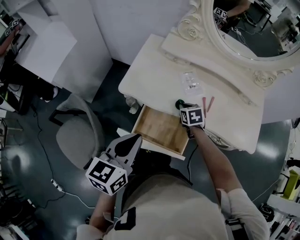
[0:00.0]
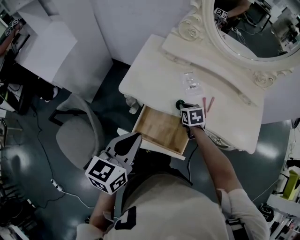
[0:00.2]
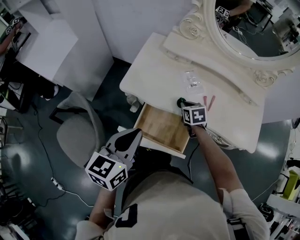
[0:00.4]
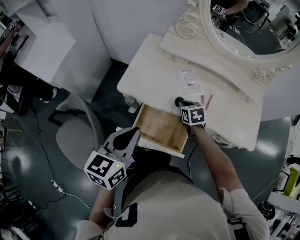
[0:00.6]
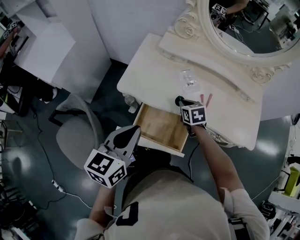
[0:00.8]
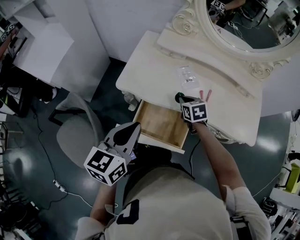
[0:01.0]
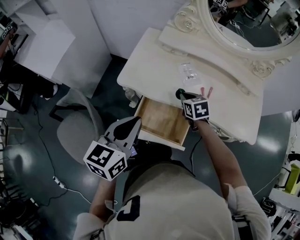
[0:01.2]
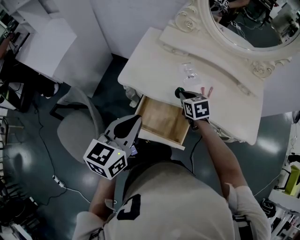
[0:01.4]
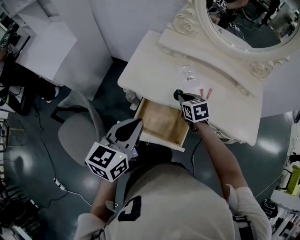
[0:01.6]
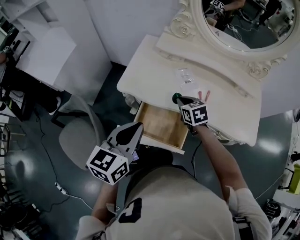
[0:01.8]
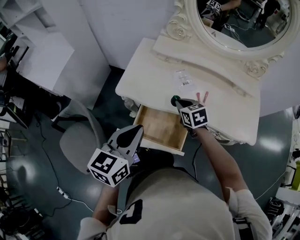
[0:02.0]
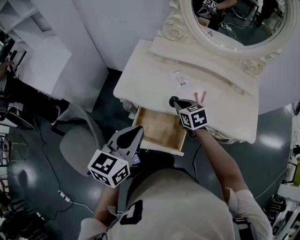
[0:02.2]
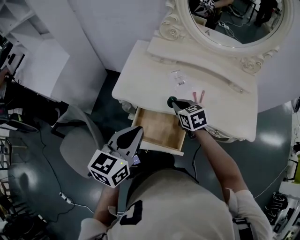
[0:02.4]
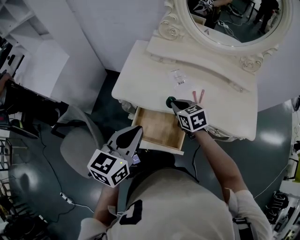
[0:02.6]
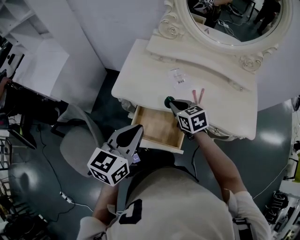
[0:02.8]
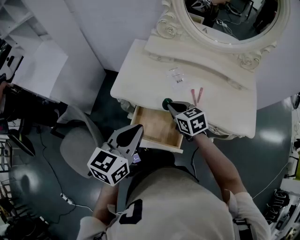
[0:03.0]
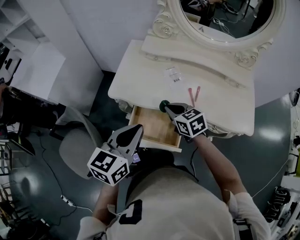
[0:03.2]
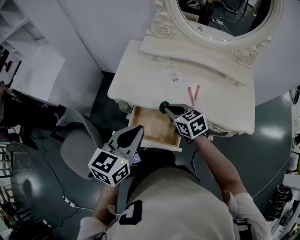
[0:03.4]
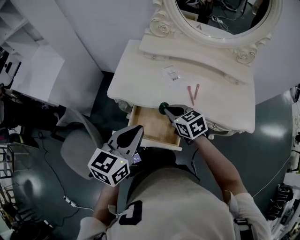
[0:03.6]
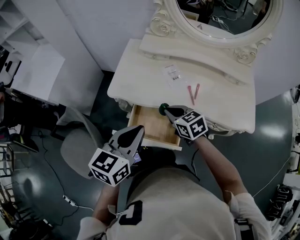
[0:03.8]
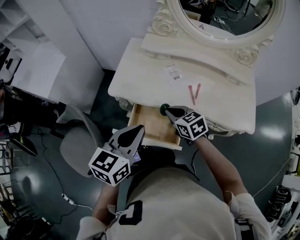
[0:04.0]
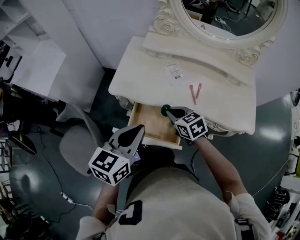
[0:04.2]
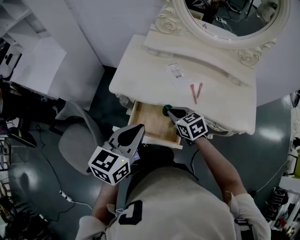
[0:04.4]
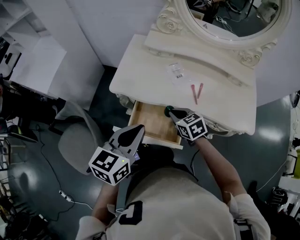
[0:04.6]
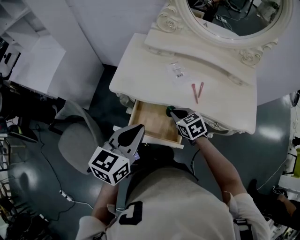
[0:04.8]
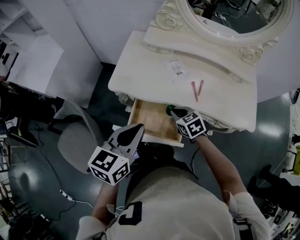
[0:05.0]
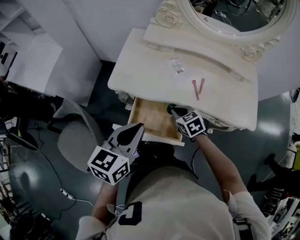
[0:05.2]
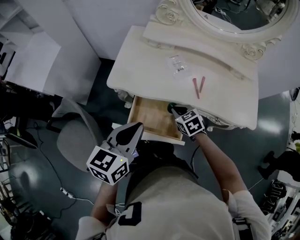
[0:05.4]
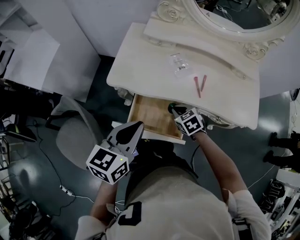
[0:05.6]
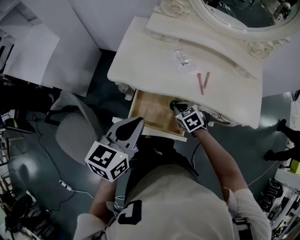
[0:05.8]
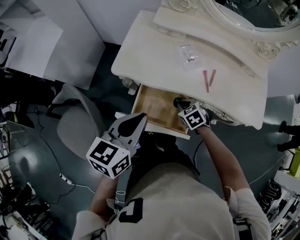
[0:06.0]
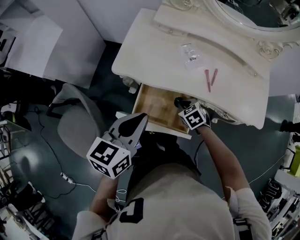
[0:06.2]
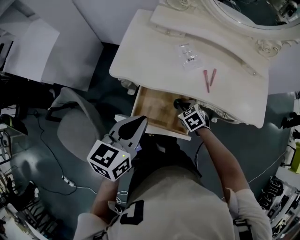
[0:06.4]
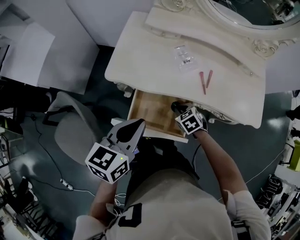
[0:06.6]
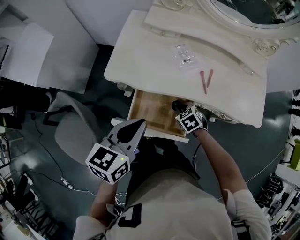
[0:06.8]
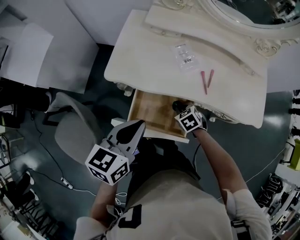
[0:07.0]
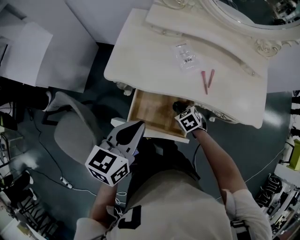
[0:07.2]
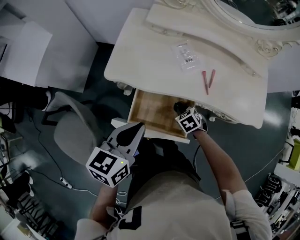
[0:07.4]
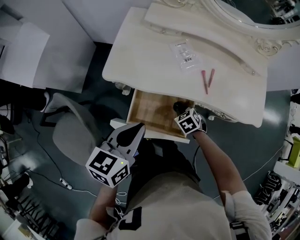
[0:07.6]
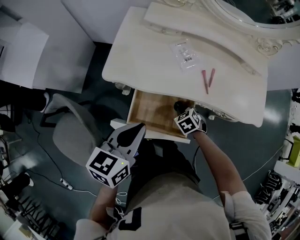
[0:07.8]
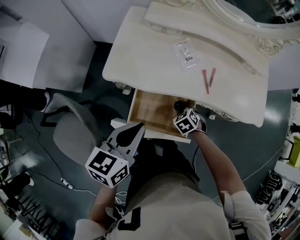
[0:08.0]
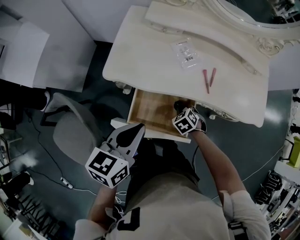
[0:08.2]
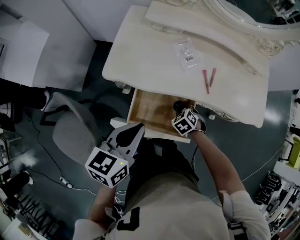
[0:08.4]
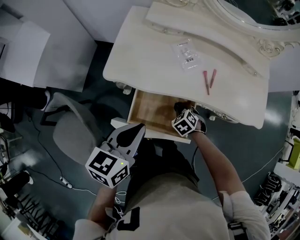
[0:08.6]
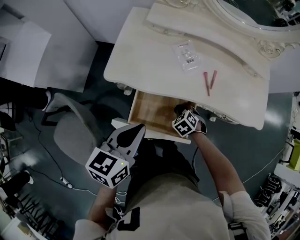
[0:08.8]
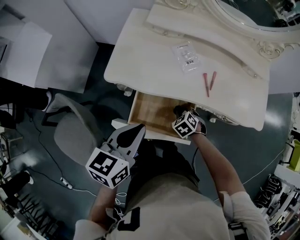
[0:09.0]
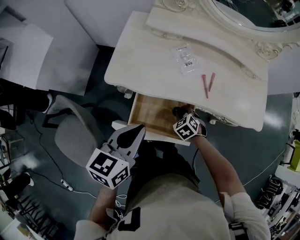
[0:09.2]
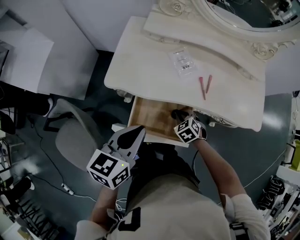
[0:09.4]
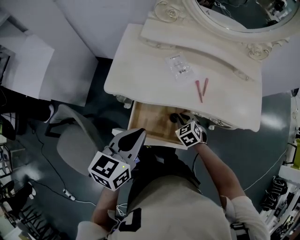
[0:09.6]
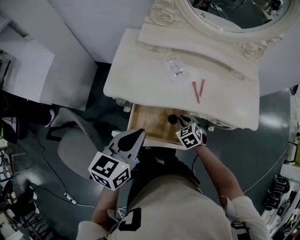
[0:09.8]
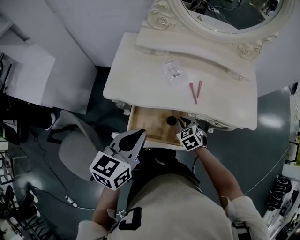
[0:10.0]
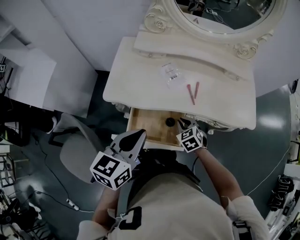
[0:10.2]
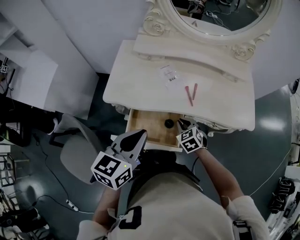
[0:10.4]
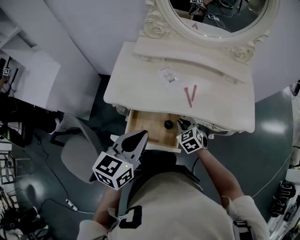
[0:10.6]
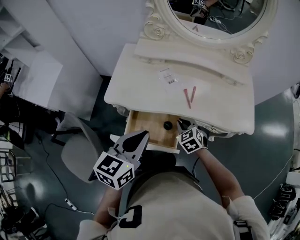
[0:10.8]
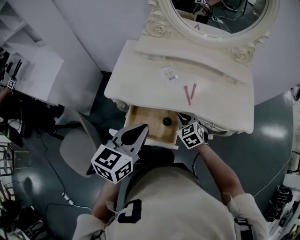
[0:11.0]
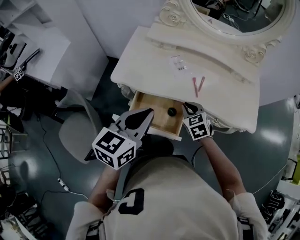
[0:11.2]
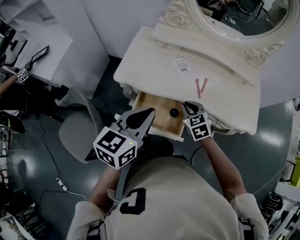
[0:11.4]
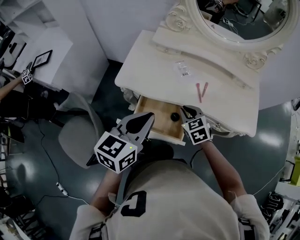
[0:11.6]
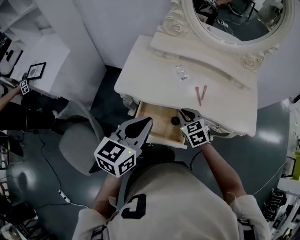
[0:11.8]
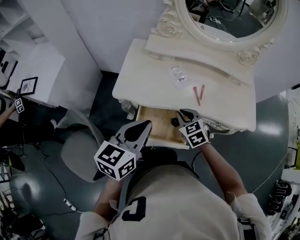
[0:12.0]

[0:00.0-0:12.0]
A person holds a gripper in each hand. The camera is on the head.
0:00.0 to 0:01.6: The right gripper heads upward, covering some 5 cm.
0:01.6 to 0:03.0: The right gripper changes place by some 5 cm.
0:03.0 to 0:04.4: The right gripper moves some 5 cm.
0:04.4 to 0:06.0: The right gripper travels downward by roughly 10 cm, and changes its angle by roughly 20 degrees.
0:06.0 to 0:07.6: The right gripper goes roughly 5 cm downward.
0:07.6 to 0:09.0: There are only small adjustments of the grippers.
0:09.0 to 0:10.4: The left gripper moves upward and to the right, about 10 cm; the right gripper goes approximately 10 cm upward, and turns by about 20 degrees.
0:10.4 to 0:12.0: The right gripper moves upward and to the left, roughly 10 cm.

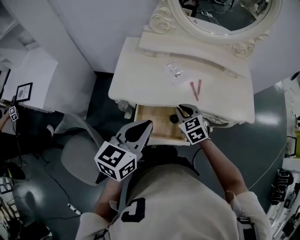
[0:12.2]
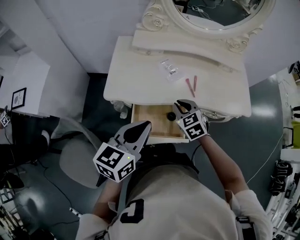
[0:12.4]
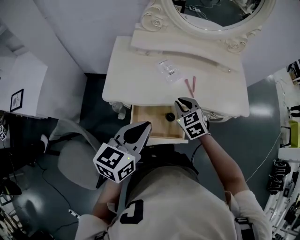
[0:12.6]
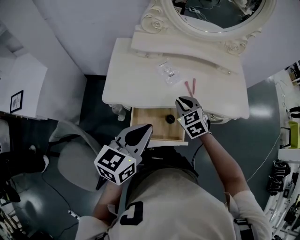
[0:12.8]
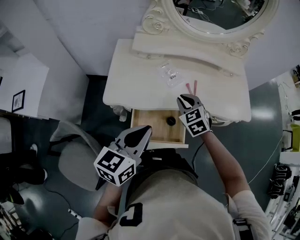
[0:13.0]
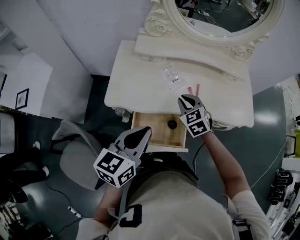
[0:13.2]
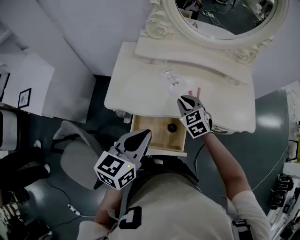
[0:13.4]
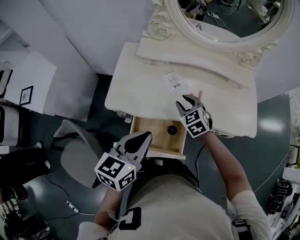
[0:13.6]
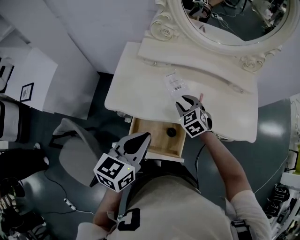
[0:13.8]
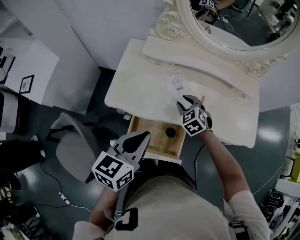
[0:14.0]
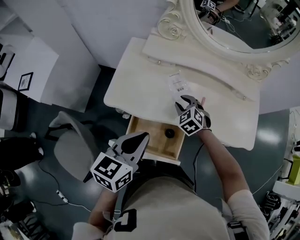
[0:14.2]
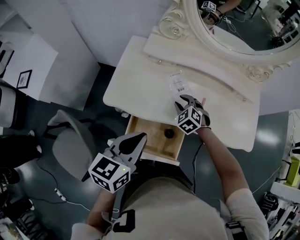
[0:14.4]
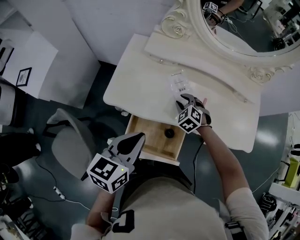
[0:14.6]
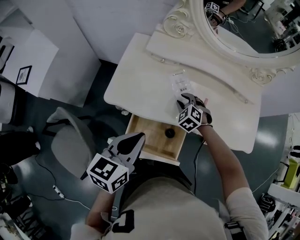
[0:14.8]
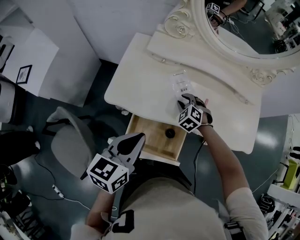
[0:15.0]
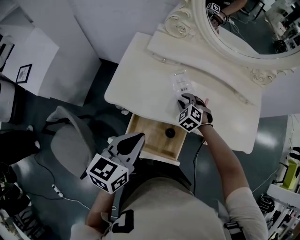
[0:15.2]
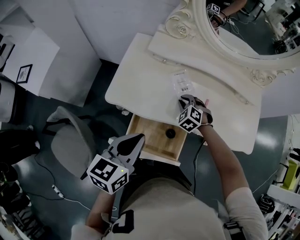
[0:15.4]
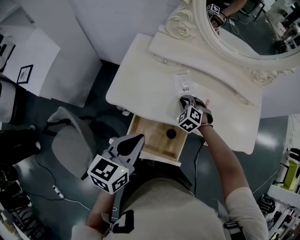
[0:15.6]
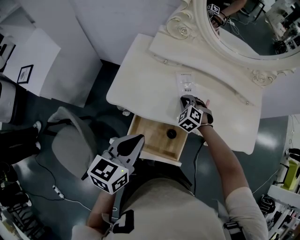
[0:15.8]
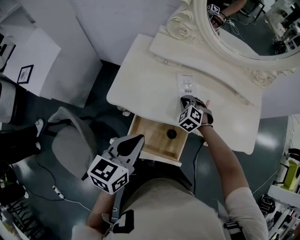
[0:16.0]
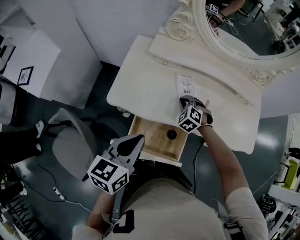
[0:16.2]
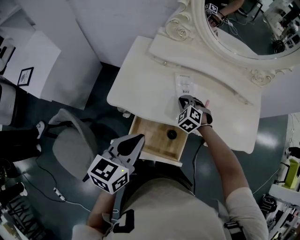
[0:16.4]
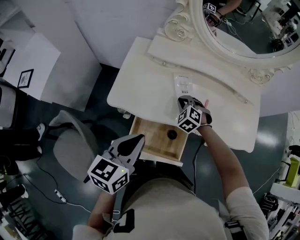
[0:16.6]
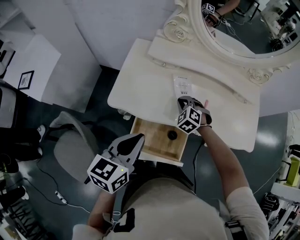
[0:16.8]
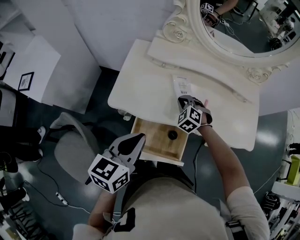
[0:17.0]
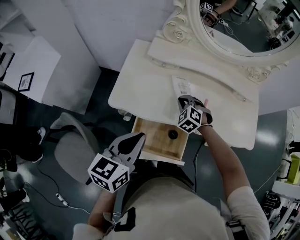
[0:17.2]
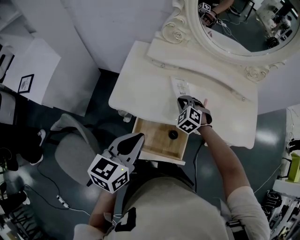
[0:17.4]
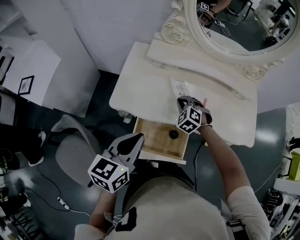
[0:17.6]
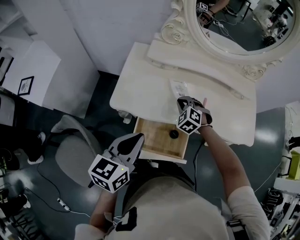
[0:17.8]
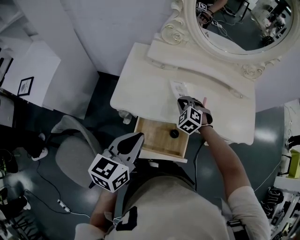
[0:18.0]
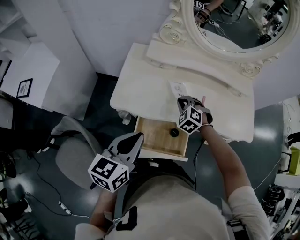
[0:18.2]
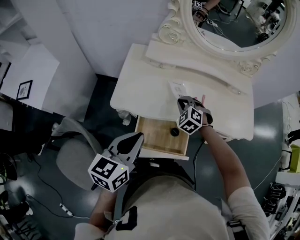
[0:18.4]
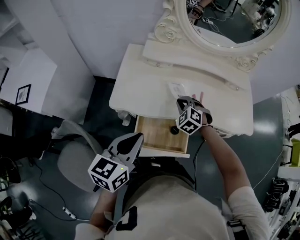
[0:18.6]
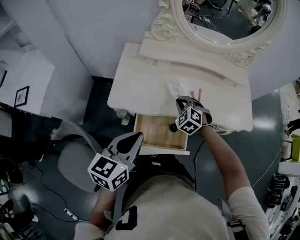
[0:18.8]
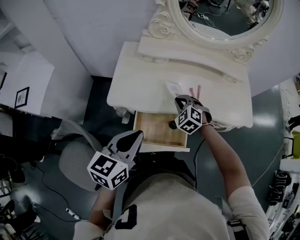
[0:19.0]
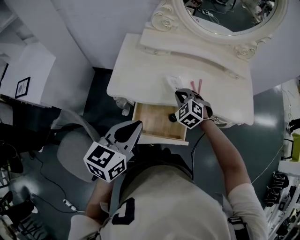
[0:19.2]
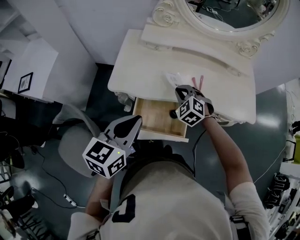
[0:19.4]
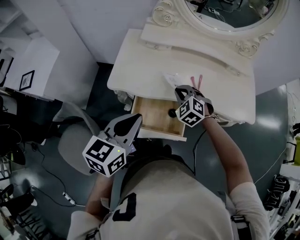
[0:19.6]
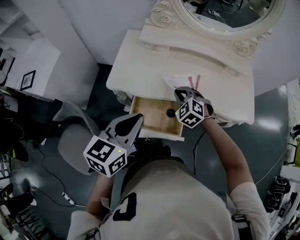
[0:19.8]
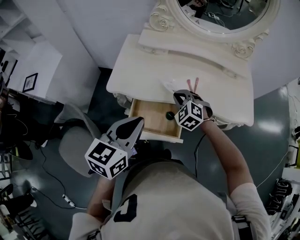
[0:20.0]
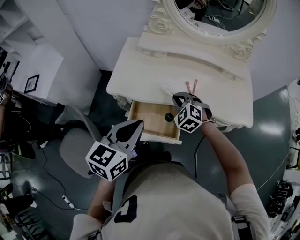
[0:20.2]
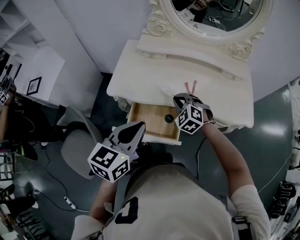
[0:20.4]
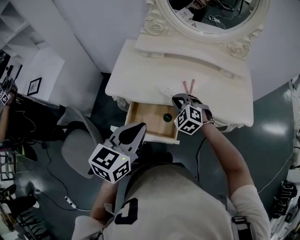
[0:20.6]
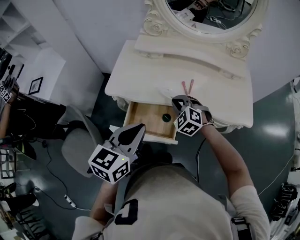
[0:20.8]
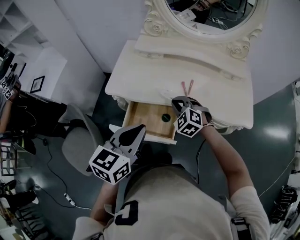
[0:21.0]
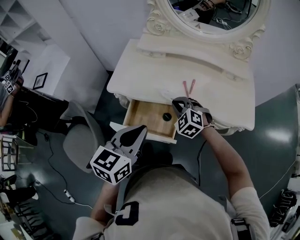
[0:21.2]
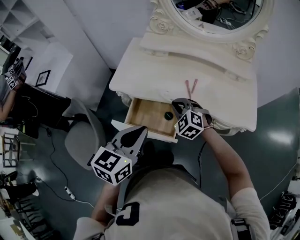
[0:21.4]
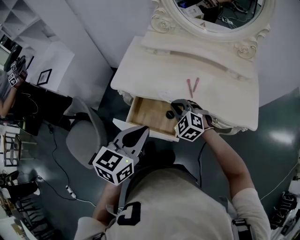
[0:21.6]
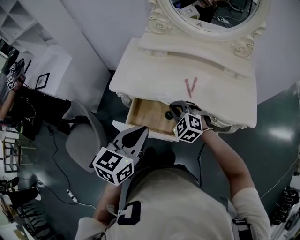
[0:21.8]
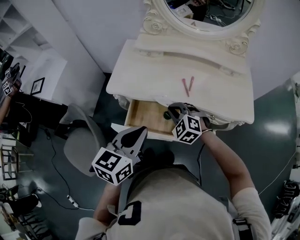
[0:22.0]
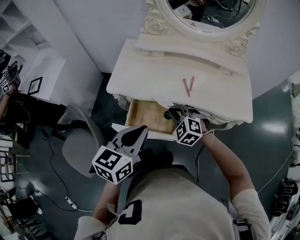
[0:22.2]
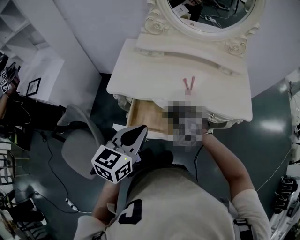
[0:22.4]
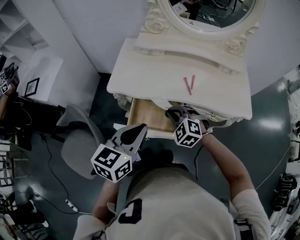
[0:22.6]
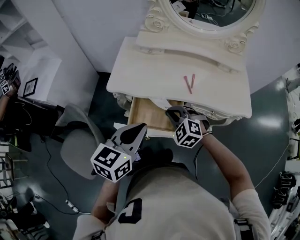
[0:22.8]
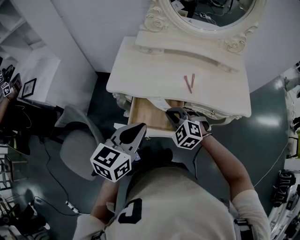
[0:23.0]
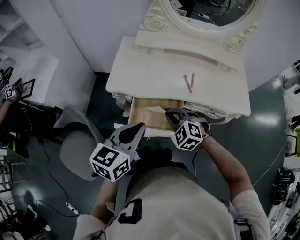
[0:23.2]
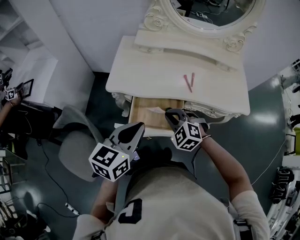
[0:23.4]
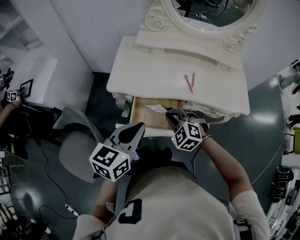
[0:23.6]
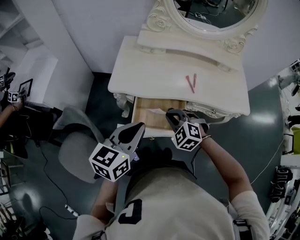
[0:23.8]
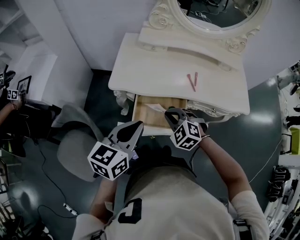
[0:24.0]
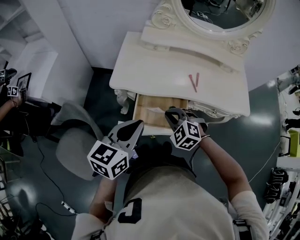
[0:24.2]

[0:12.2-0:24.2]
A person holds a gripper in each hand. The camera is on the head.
0:12.2 to 0:13.8: The left gripper shifts about 5 cm forward, while the right gripper goes about 10 cm forward, and opens.
0:13.8 to 0:15.2: The right gripper shifts approximately 10 cm downward, and rotates about 20 degrees.
0:15.2 to 0:16.6: The right gripper closes.
0:16.6 to 0:18.2: The right gripper shifts by some 5 cm.
0:18.2 to 0:19.8: The left gripper travels to the right by roughly 5 cm. The right gripper travels backward by approximately 10 cm.
0:19.8 to 0:21.2: The right gripper changes place by some 5 cm, while the left gripper heads to the right, covering roughly 10 cm.
0:21.2 to 0:22.6: The left gripper travels to the left by some 5 cm. Meanwhile the right gripper goes about 10 cm backward and to the left.
0:22.6 to 0:24.2: The grippers both shift to the left by about 5 cm.
